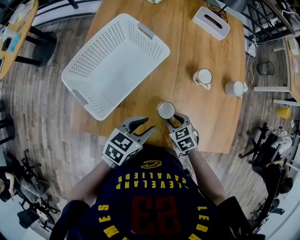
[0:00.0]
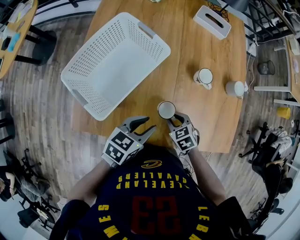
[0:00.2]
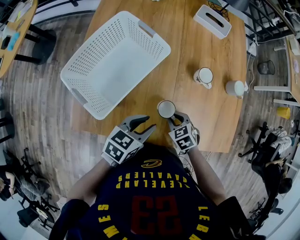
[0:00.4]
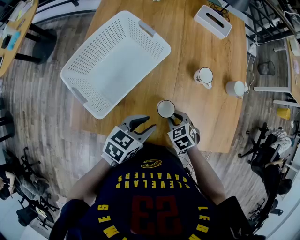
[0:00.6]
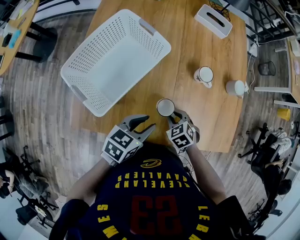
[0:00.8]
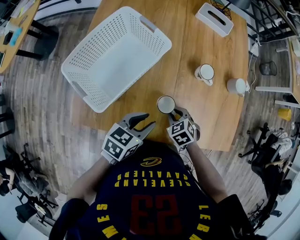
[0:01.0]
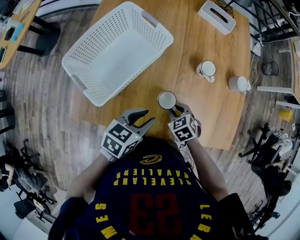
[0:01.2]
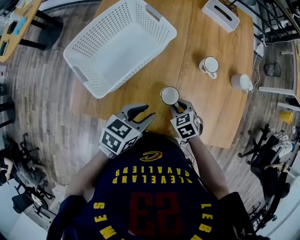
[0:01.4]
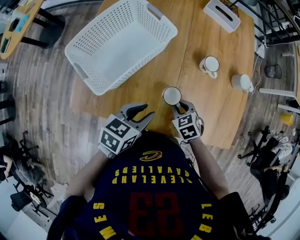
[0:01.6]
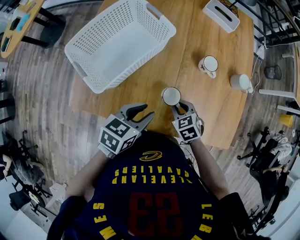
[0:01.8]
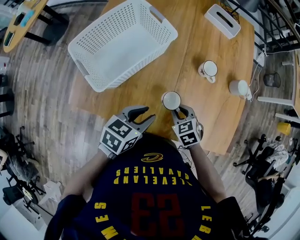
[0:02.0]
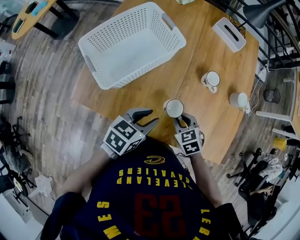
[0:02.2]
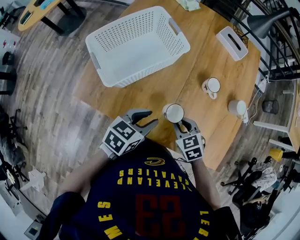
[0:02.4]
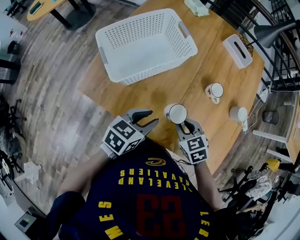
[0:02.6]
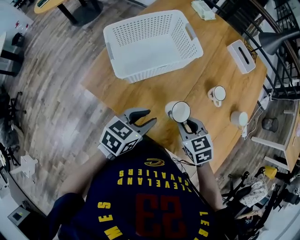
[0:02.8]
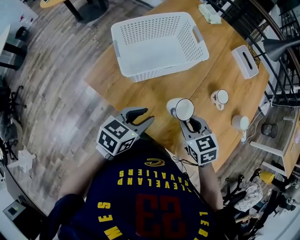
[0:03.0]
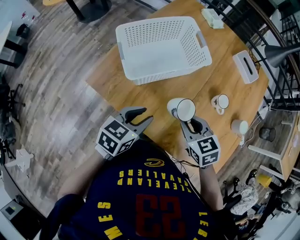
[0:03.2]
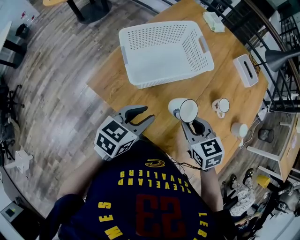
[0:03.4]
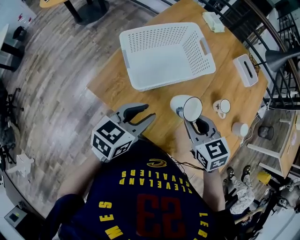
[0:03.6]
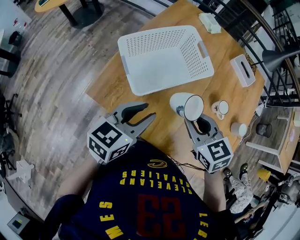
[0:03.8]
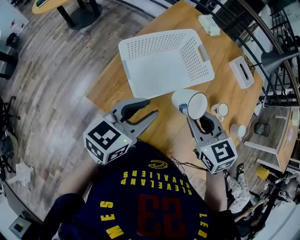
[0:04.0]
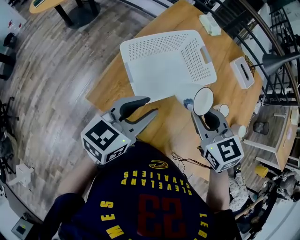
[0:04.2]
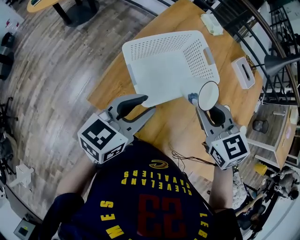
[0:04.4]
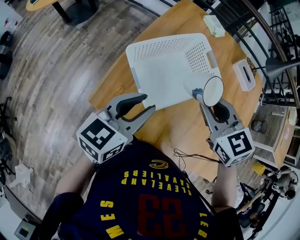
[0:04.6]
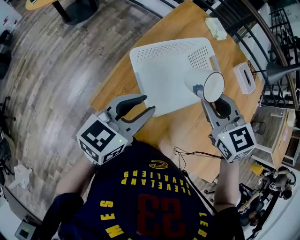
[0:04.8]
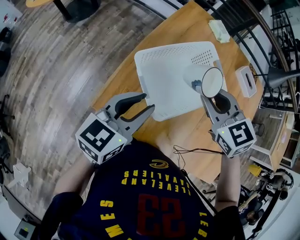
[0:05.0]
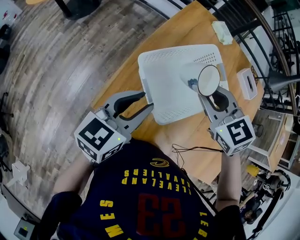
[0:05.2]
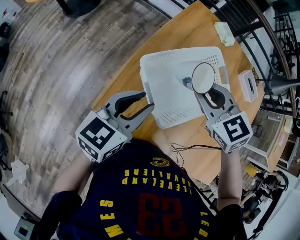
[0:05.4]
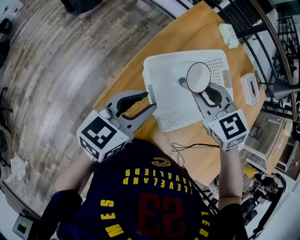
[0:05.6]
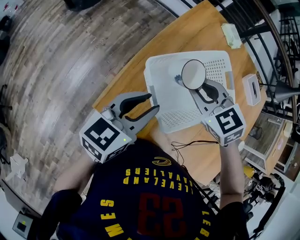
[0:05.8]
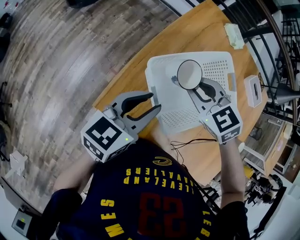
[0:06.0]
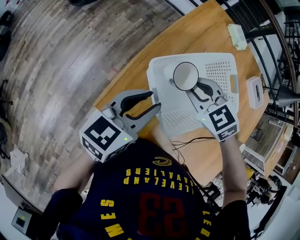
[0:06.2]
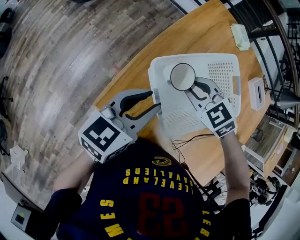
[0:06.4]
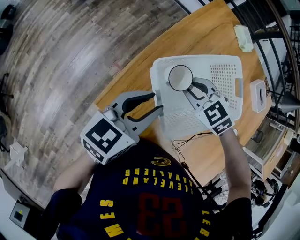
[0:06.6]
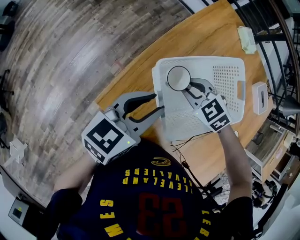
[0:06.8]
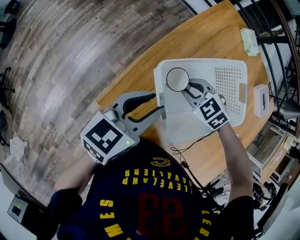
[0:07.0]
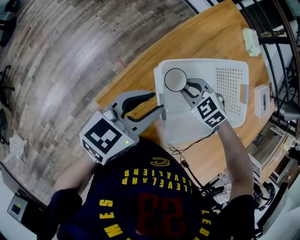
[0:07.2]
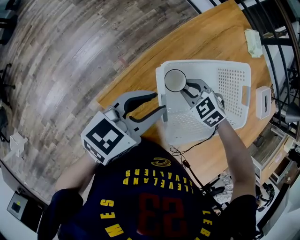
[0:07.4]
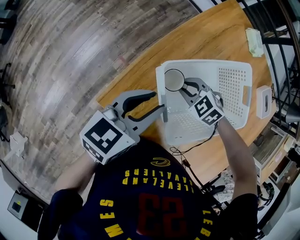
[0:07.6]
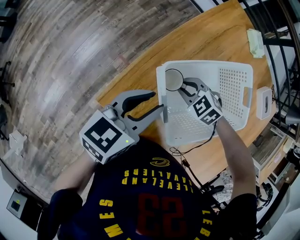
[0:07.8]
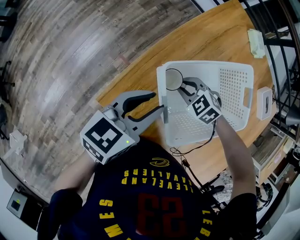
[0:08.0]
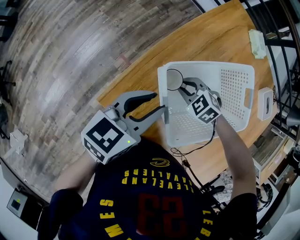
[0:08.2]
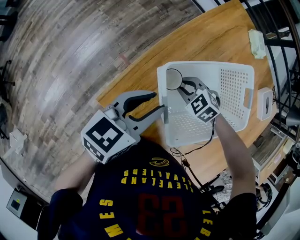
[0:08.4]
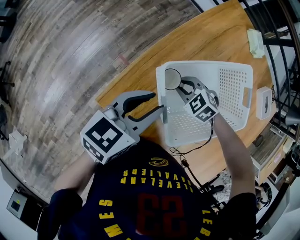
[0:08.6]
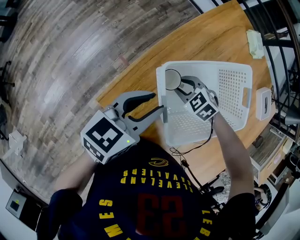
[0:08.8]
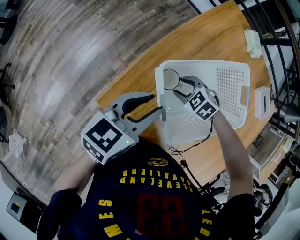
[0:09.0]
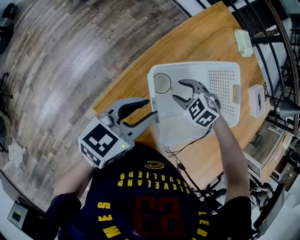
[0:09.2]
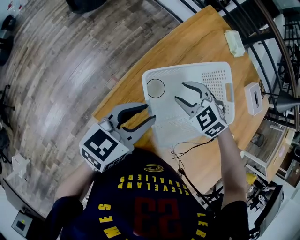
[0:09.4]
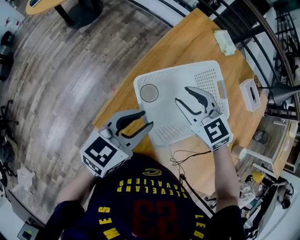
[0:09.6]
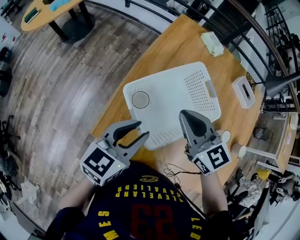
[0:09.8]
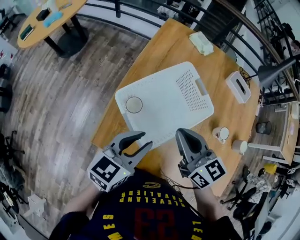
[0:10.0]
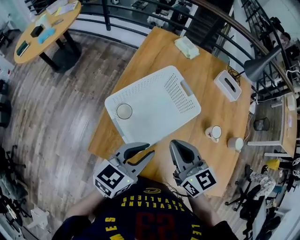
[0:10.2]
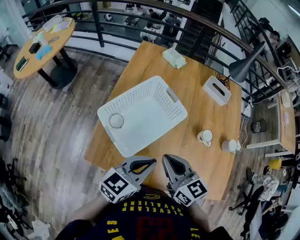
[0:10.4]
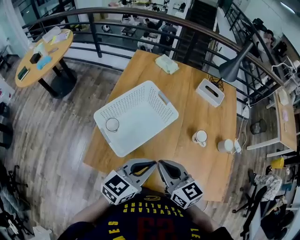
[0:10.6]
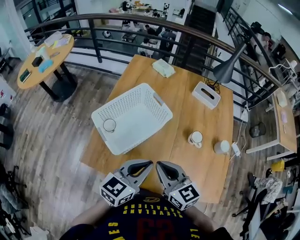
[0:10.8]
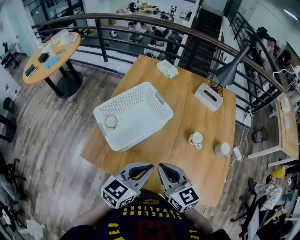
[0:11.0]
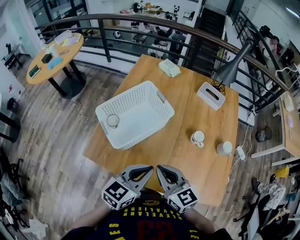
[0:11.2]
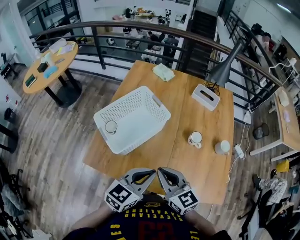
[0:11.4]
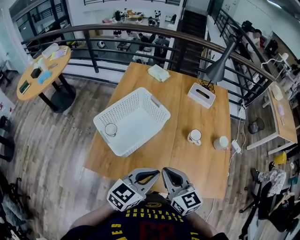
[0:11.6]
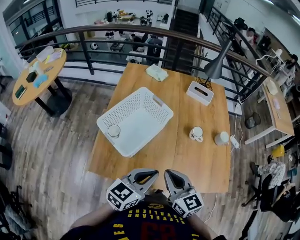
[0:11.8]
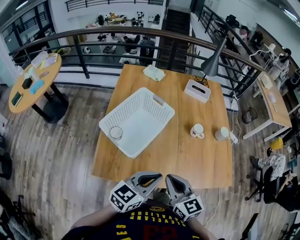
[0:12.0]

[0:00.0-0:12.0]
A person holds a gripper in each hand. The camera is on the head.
0:00.0 to 0:01.6: The grippers stay close to where they were, moving slightly.
0:01.6 to 0:03.0: The right gripper shifts some 10 cm upward, and rotates some 20 degrees. Meanwhile the left gripper swivels about 20 degrees.
0:03.0 to 0:04.4: The grippers both shift upward, forward and to the left by roughly 20 cm.
0:04.4 to 0:06.0: The left gripper travels forward and to the left by about 10 cm; the right gripper travels to the left, forward and downward by roughly 20 cm, and swivels some 20 degrees.
0:06.0 to 0:07.6: The right gripper heads downward, covering approximately 15 cm, and turns by some 30 degrees.
0:07.6 to 0:09.0: The right gripper opens its fingers.
0:09.0 to 0:10.4: The left gripper changes place by some 25 cm, swivels roughly 30 degrees, and closes, while the right gripper goes some 25 cm upward, points its fingers some 50 degrees further upward, and closes up.
0:10.4 to 0:12.0: Both grippers move backward, roughly 10 cm.

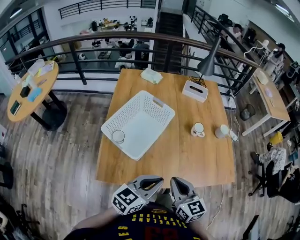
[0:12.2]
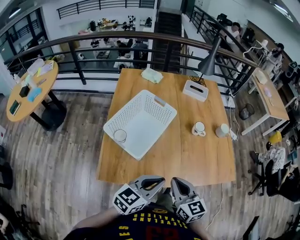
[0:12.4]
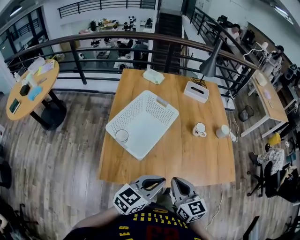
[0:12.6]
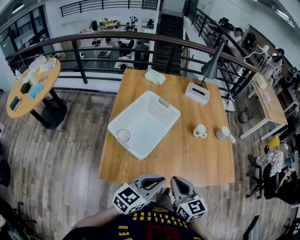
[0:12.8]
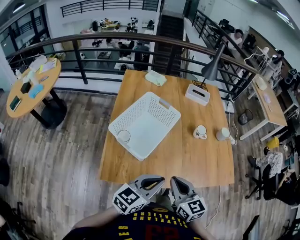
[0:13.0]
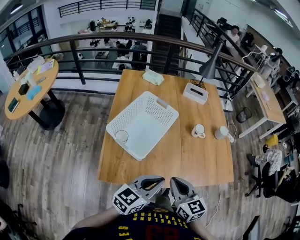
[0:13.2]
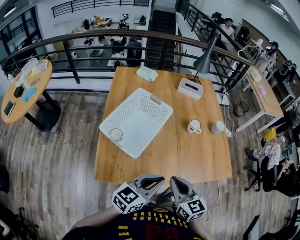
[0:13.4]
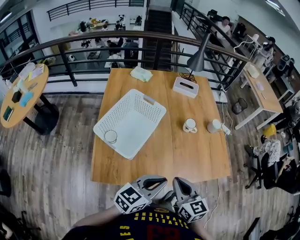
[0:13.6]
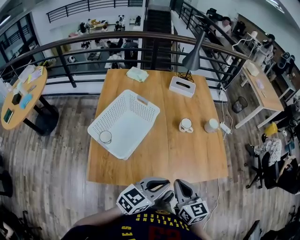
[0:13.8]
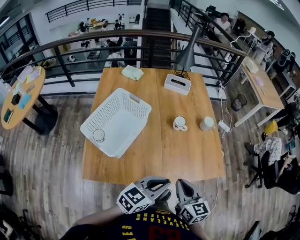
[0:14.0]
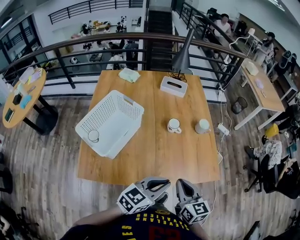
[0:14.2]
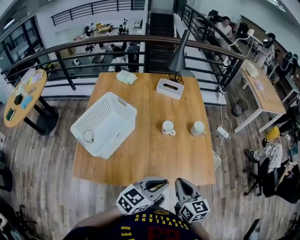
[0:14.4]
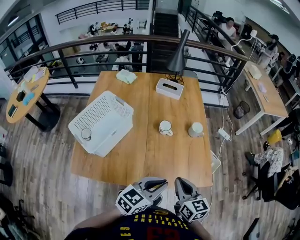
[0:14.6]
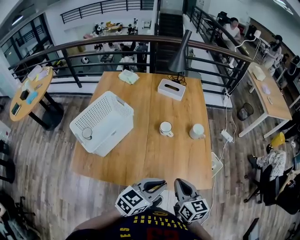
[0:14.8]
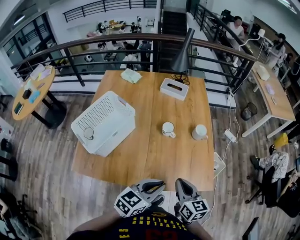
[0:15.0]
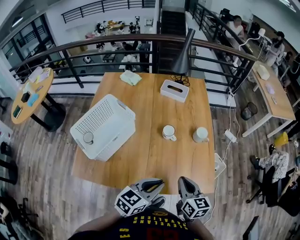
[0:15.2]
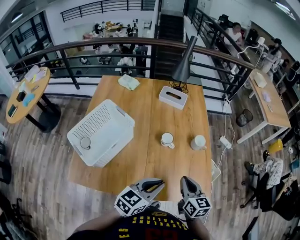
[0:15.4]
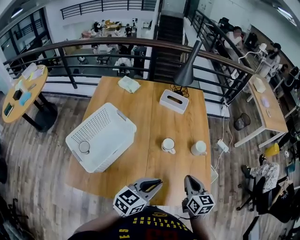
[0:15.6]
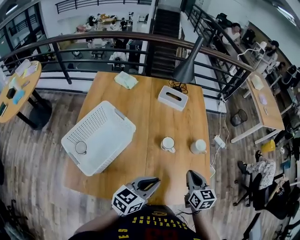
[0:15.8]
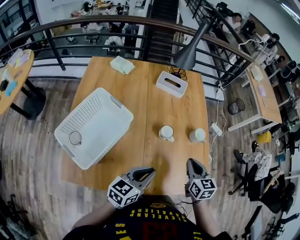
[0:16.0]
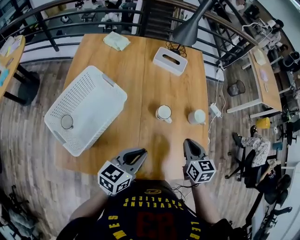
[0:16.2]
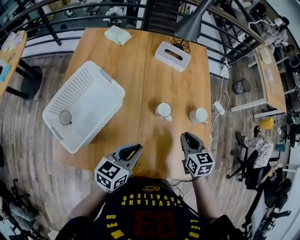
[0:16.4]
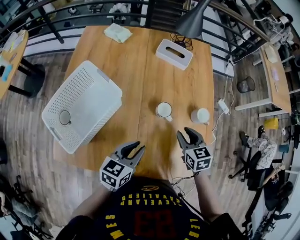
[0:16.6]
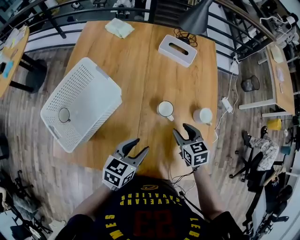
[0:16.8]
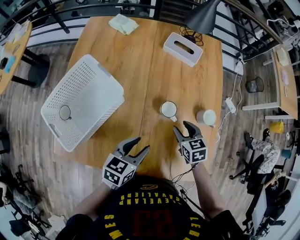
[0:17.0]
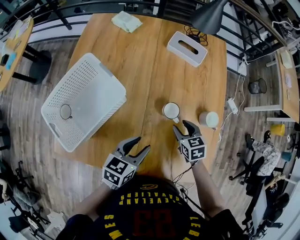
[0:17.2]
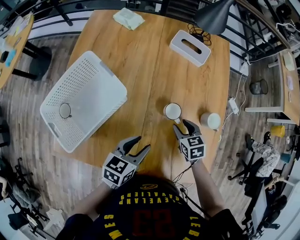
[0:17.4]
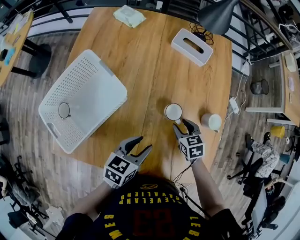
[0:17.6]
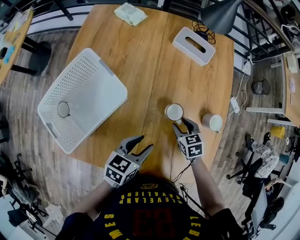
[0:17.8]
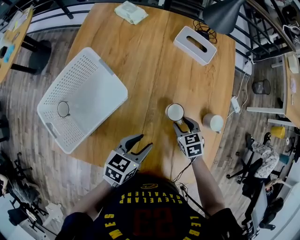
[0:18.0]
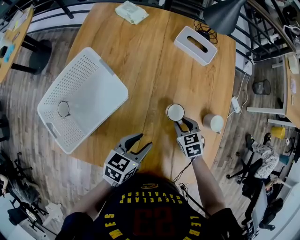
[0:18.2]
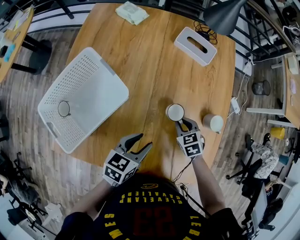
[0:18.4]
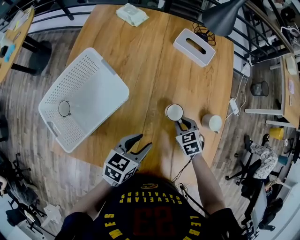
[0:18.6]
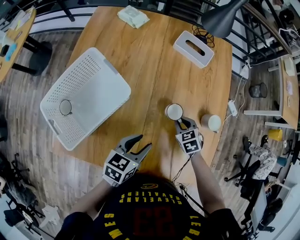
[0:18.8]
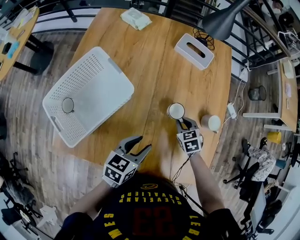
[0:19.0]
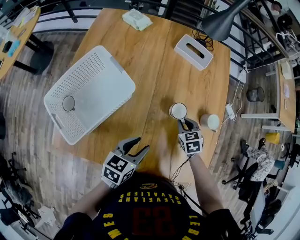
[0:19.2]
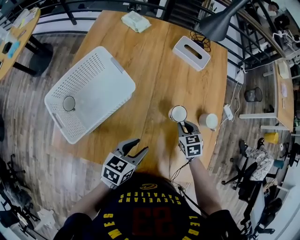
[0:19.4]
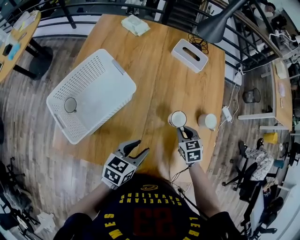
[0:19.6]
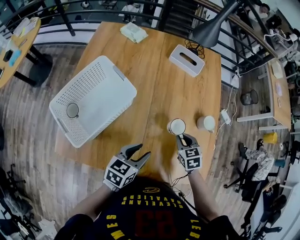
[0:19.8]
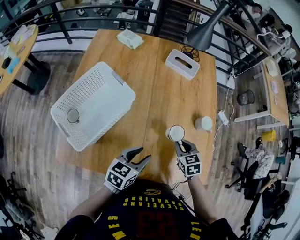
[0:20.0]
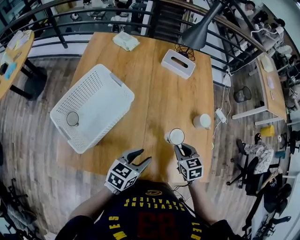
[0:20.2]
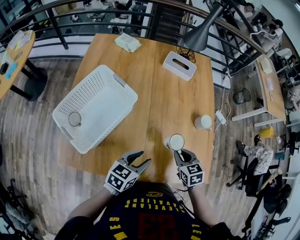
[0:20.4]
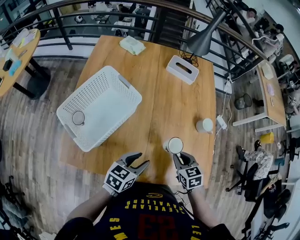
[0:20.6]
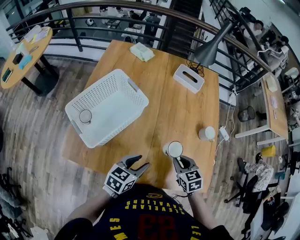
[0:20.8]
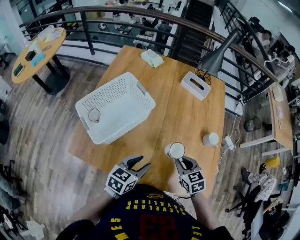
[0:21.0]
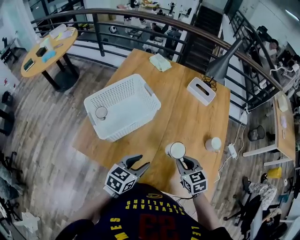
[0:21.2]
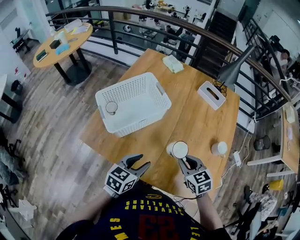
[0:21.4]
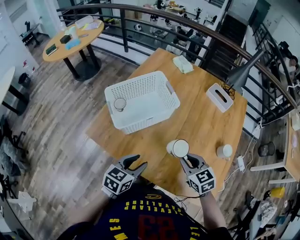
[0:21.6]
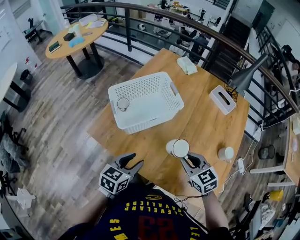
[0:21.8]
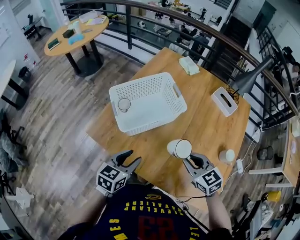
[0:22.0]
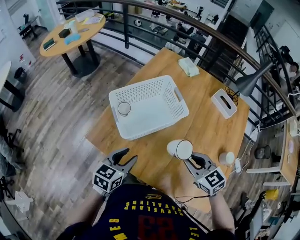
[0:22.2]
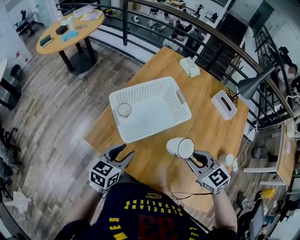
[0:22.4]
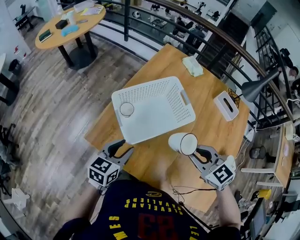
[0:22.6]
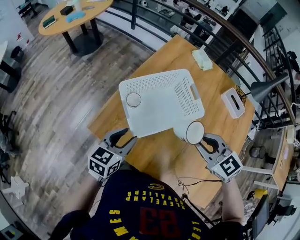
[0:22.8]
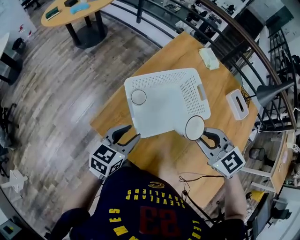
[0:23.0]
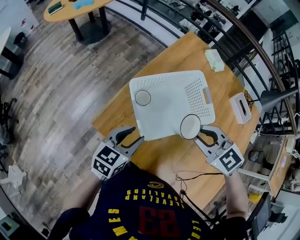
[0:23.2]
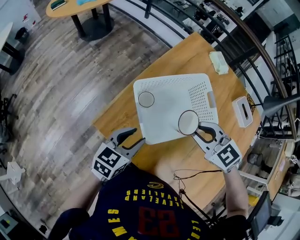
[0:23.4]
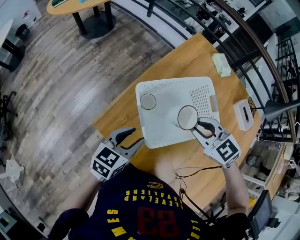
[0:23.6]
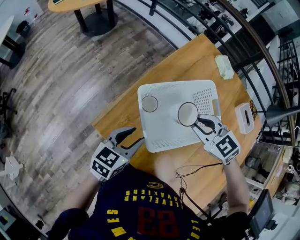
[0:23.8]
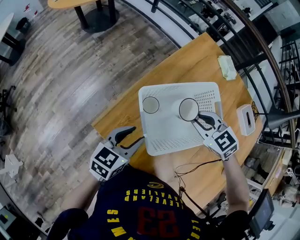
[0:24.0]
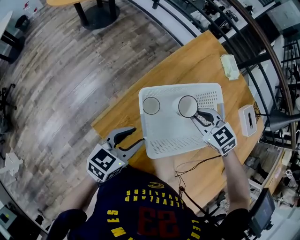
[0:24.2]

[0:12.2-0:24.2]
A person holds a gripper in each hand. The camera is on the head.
0:12.2 to 0:13.8: The grippers both shift to the right by some 10 cm.
0:13.8 to 0:15.2: The grippers both shift to the right and forward by some 20 cm.
0:15.2 to 0:16.6: The left gripper shifts approximately 15 cm forward, to the left and downward, while the right gripper travels forward and downward by some 20 cm, turns by roughly 30 degrees, and opens its fingers.
0:16.6 to 0:18.2: The right gripper moves downward and forward, some 15 cm, and changes its angle by approximately 20 degrees; the left gripper moves about 5 cm, and opens its fingers.
0:18.2 to 0:19.8: Both grippers travel together backward, some 5 cm.
0:19.8 to 0:21.2: The left gripper moves backward and to the left, roughly 10 cm; the right gripper travels upward, backward and to the left by some 15 cm.
0:21.2 to 0:22.6: The right gripper shifts by roughly 20 cm, and rotates about 40 degrees. Meanwhile the left gripper moves some 20 cm.
0:22.6 to 0:24.2: The right gripper heads forward, downward and to the left, covering about 25 cm, and changes its angle by approximately 20 degrees. Meanwhile the left gripper heads forward and to the left, covering some 10 cm.
